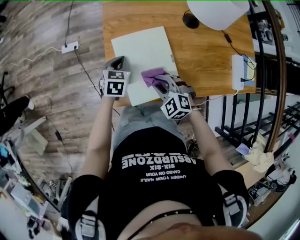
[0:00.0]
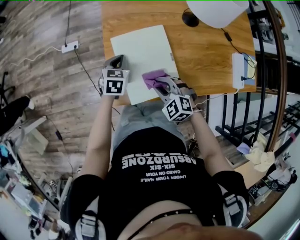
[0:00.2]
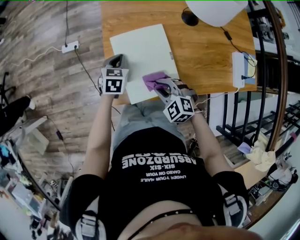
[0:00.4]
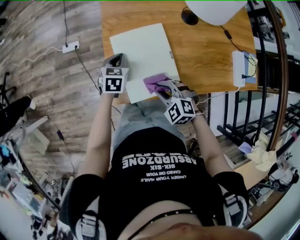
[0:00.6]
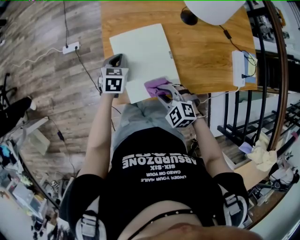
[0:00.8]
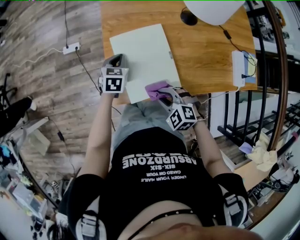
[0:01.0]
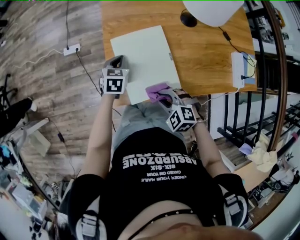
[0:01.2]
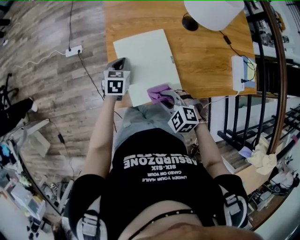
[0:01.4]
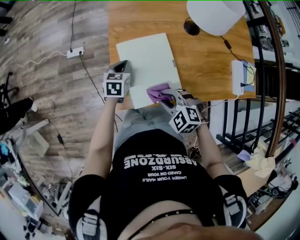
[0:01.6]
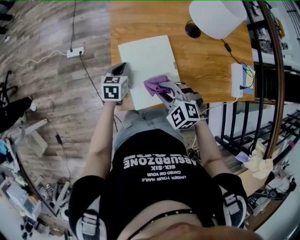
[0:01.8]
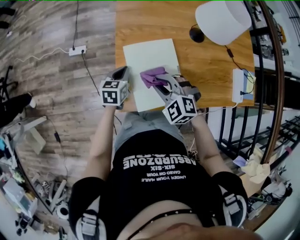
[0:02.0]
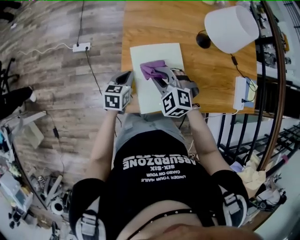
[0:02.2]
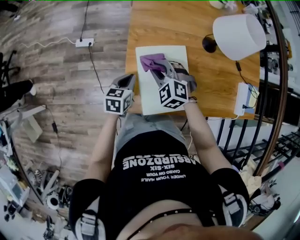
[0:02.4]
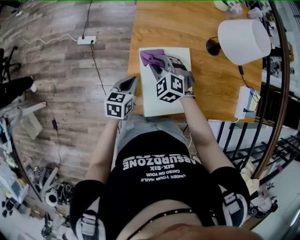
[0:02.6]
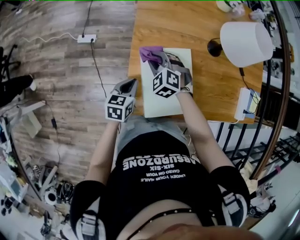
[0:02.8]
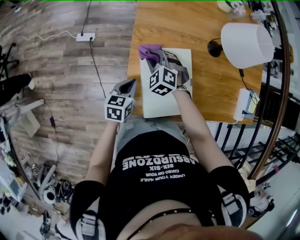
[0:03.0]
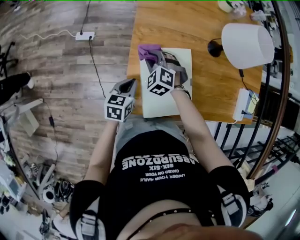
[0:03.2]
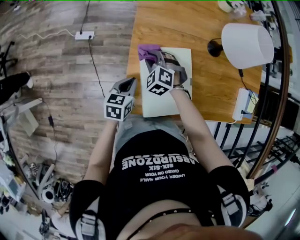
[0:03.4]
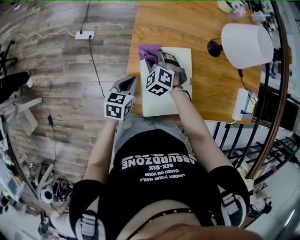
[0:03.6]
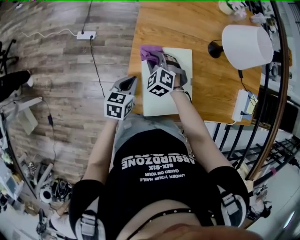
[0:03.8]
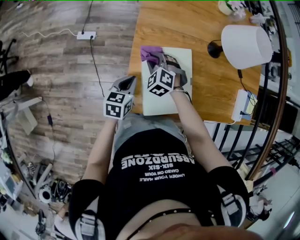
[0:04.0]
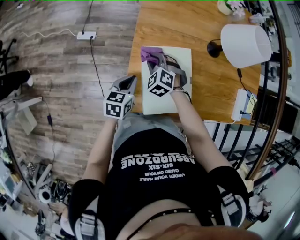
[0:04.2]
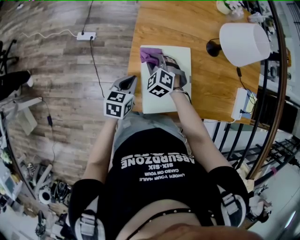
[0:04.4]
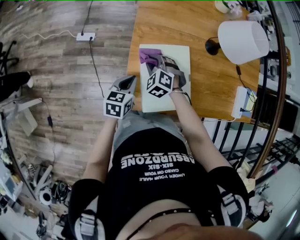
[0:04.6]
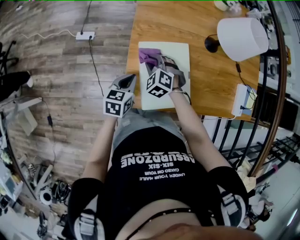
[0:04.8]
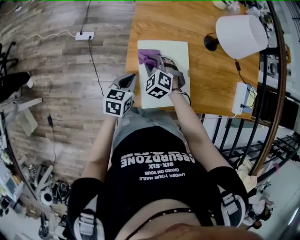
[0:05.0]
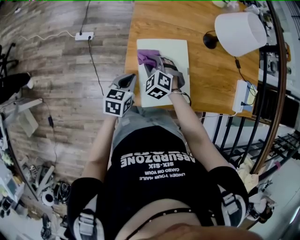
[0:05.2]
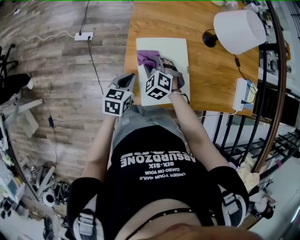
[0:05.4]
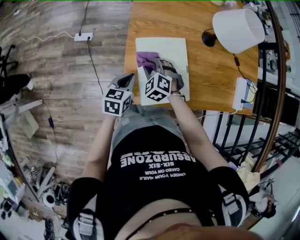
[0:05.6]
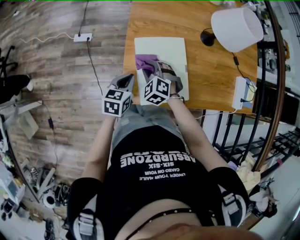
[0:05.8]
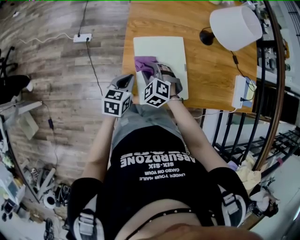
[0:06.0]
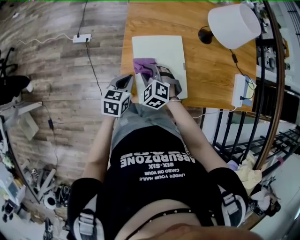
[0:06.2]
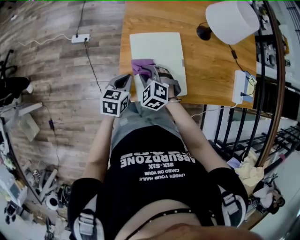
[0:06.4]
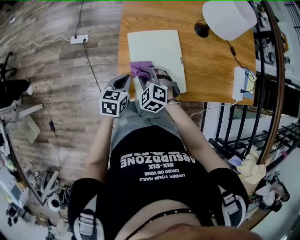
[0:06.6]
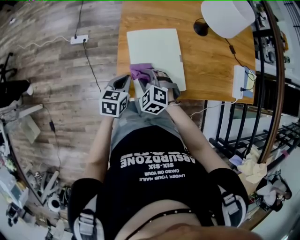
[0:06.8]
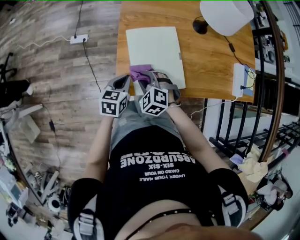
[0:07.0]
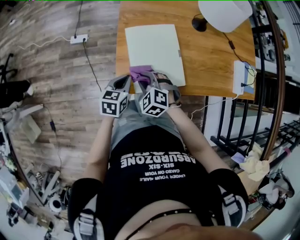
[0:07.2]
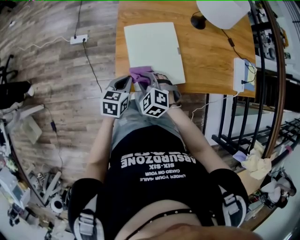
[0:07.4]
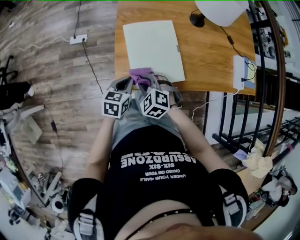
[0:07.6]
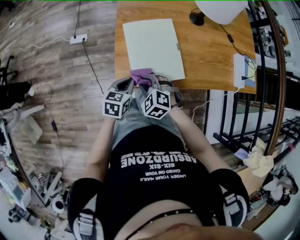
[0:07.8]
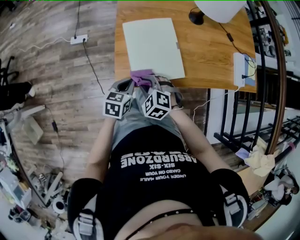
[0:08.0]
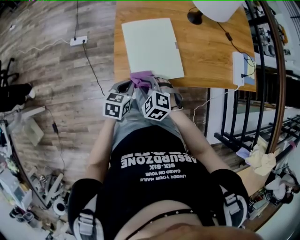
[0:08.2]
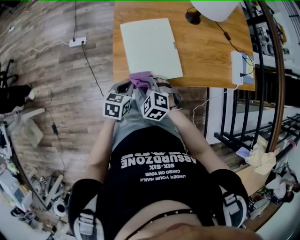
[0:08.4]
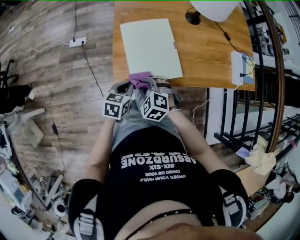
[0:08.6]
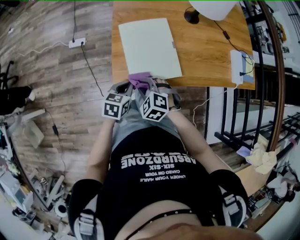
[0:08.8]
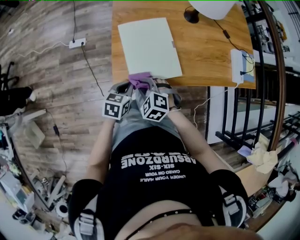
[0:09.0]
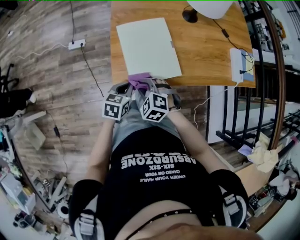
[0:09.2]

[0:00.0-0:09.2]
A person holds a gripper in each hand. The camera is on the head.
0:00.0 to 0:01.6: The right gripper shifts by some 5 cm.
0:01.6 to 0:03.0: The right gripper shifts some 25 cm forward and to the left; the left gripper goes some 5 cm backward.
0:03.0 to 0:04.6: The grippers move only a little.
0:04.6 to 0:06.2: The right gripper heads backward, covering about 10 cm.
0:06.2 to 0:07.6: The right gripper moves backward, approximately 10 cm; the left gripper shifts about 5 cm backward.
0:07.6 to 0:09.2: The grippers move only a little.

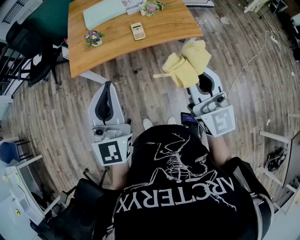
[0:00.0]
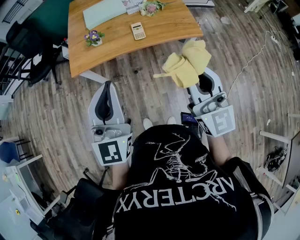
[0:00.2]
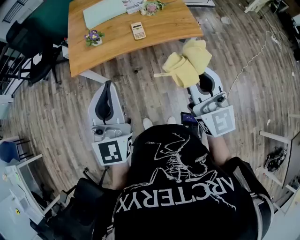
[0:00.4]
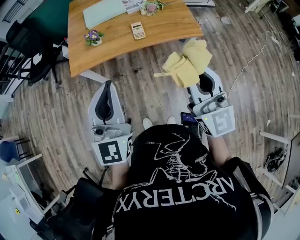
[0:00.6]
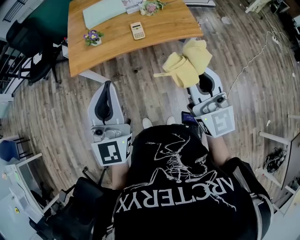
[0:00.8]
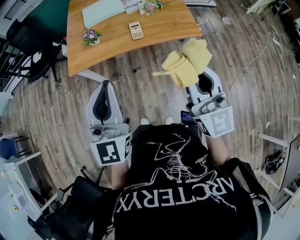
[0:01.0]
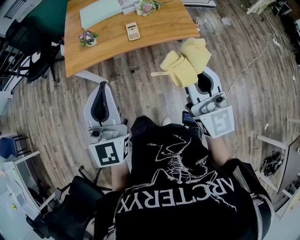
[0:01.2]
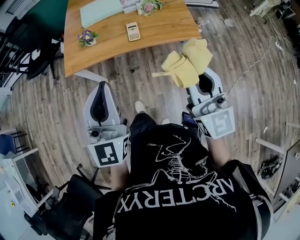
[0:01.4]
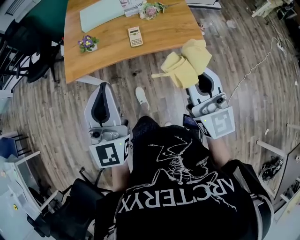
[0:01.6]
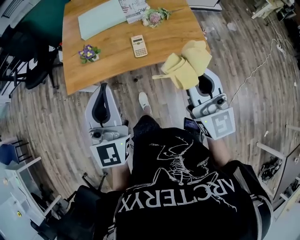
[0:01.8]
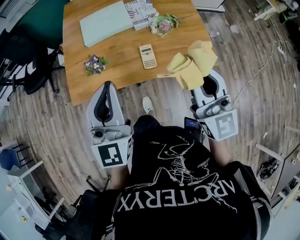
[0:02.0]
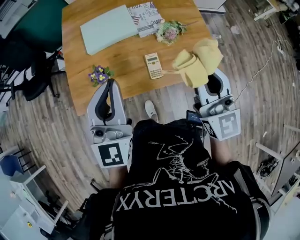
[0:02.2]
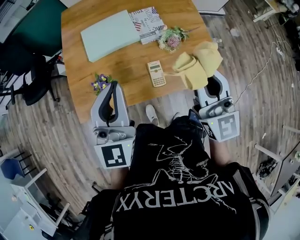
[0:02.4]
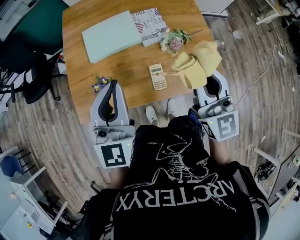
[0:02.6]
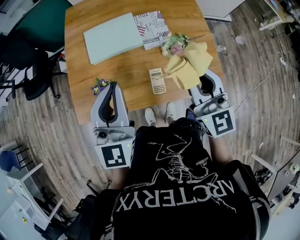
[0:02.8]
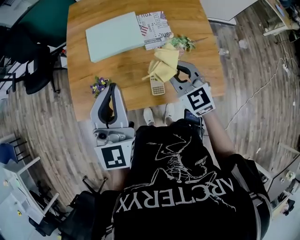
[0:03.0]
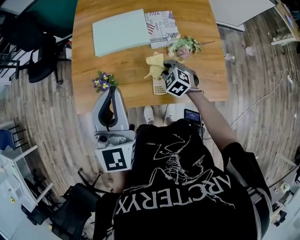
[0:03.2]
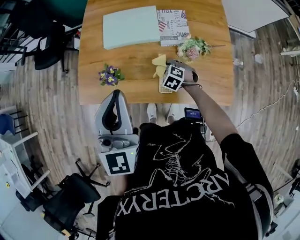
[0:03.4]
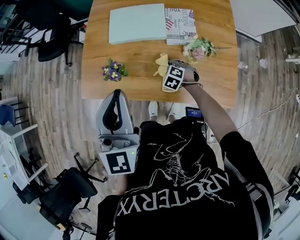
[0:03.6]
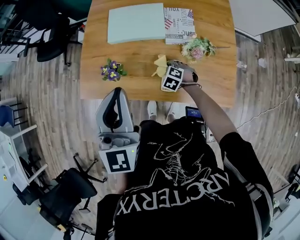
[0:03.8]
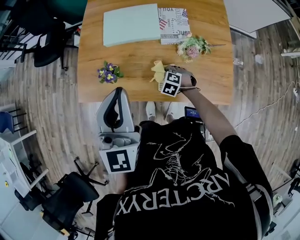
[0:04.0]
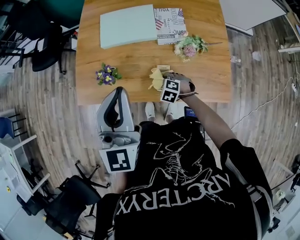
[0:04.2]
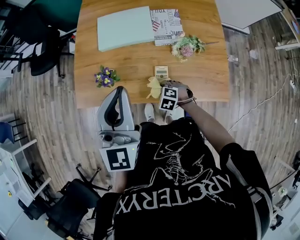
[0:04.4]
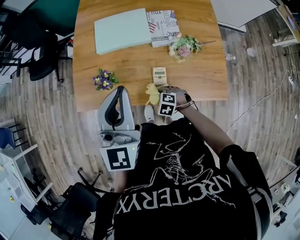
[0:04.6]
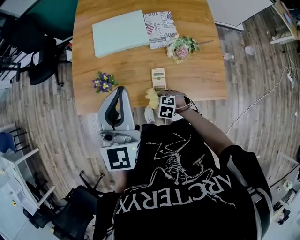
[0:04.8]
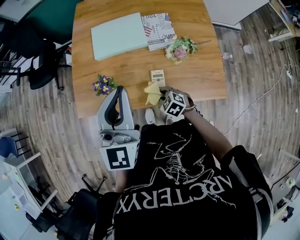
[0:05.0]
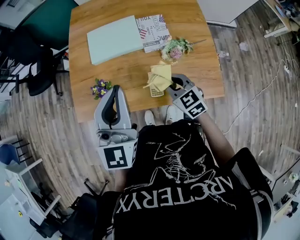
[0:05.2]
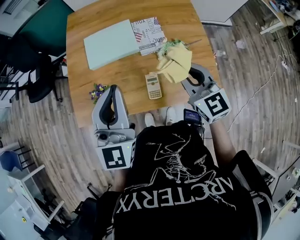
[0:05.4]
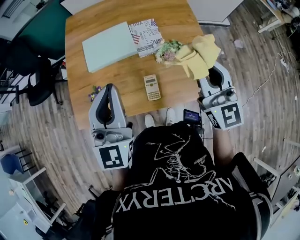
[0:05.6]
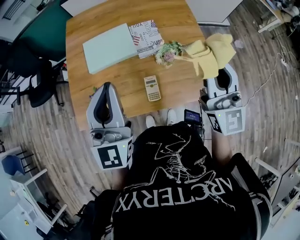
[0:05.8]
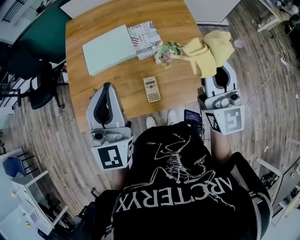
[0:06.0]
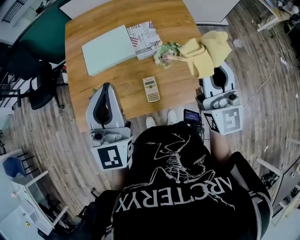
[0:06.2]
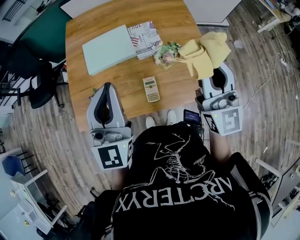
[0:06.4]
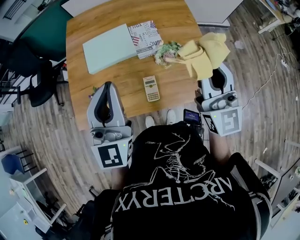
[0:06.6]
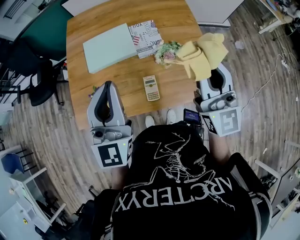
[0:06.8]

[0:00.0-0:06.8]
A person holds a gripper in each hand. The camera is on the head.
0:00.0 to 0:01.4: Both grippers move to the right, roughly 5 cm.
0:01.4 to 0:02.8: The two grippers travel together, forward, about 40 cm.
0:02.8 to 0:04.0: The right gripper is displaced downward by roughly 40 cm, and tilts its fingers about 70 degrees downward.
0:04.0 to 0:05.4: The right gripper is displaced upward by approximately 35 cm, and points its fingers roughly 60 degrees further upward.
0:05.4 to 0:06.8: The right gripper travels upward and to the right by roughly 15 cm, and turns by about 30 degrees.

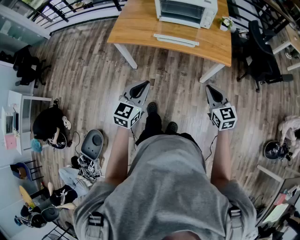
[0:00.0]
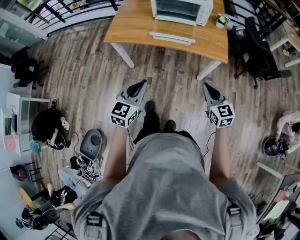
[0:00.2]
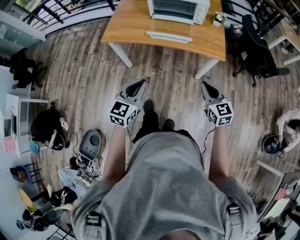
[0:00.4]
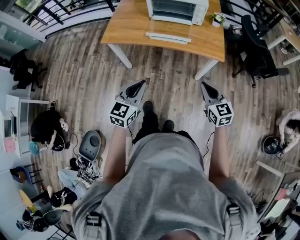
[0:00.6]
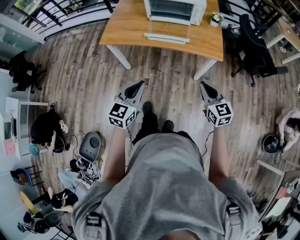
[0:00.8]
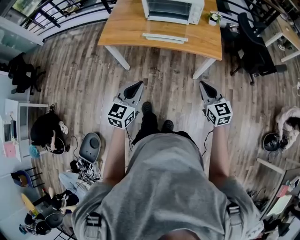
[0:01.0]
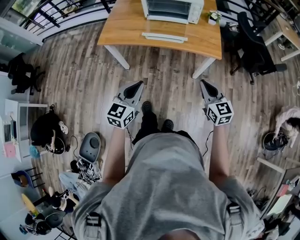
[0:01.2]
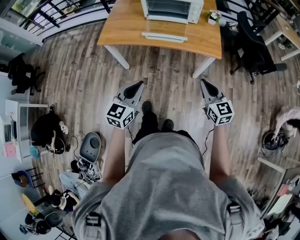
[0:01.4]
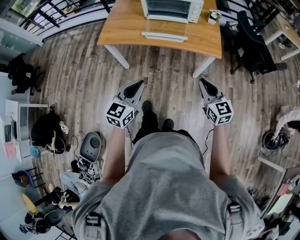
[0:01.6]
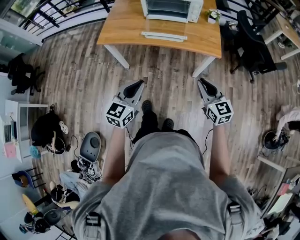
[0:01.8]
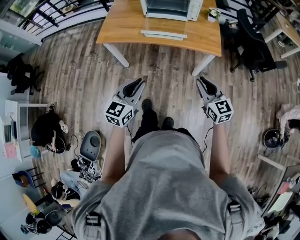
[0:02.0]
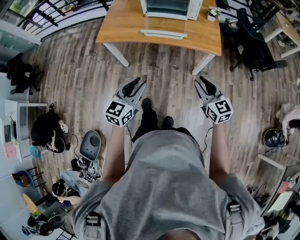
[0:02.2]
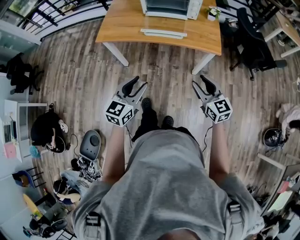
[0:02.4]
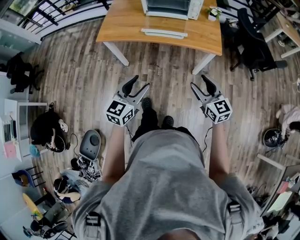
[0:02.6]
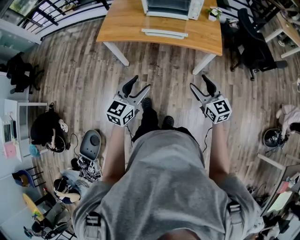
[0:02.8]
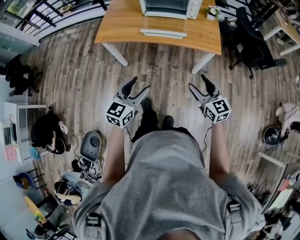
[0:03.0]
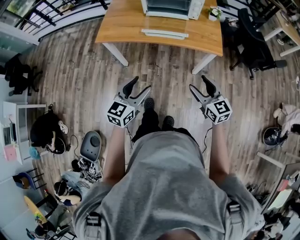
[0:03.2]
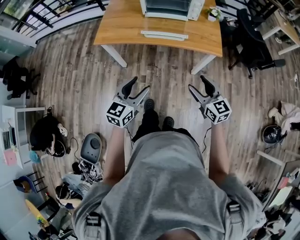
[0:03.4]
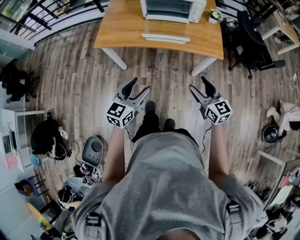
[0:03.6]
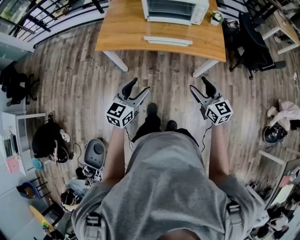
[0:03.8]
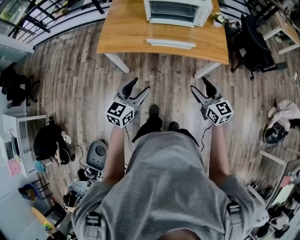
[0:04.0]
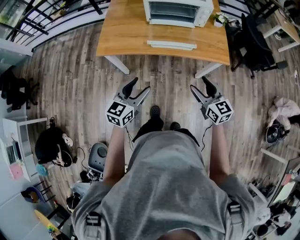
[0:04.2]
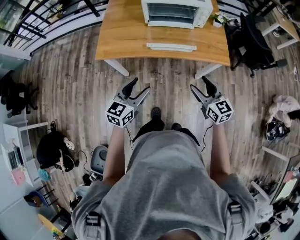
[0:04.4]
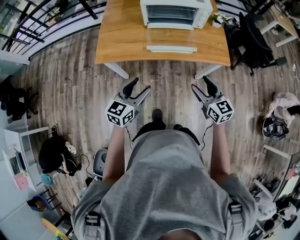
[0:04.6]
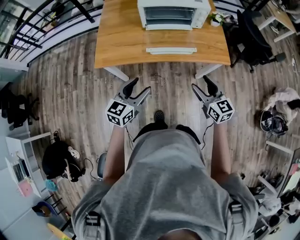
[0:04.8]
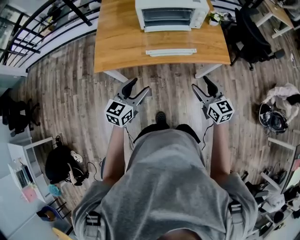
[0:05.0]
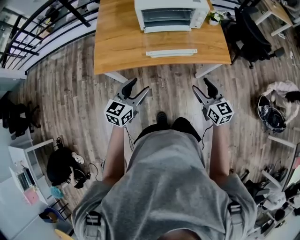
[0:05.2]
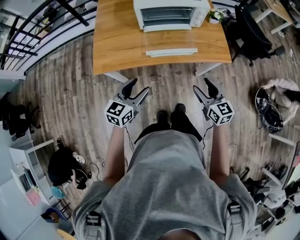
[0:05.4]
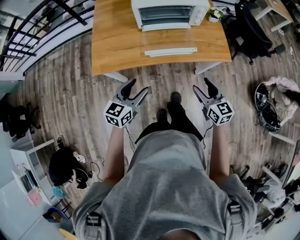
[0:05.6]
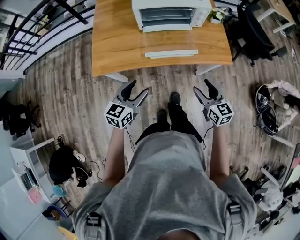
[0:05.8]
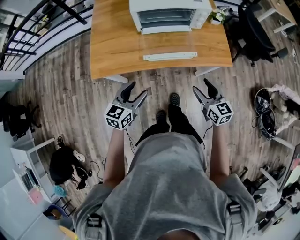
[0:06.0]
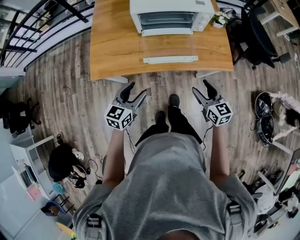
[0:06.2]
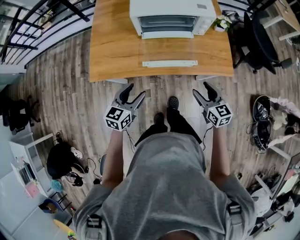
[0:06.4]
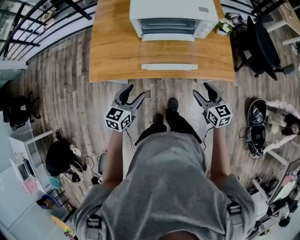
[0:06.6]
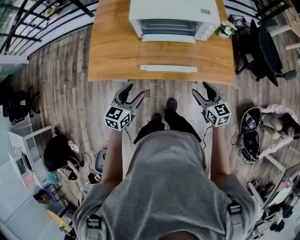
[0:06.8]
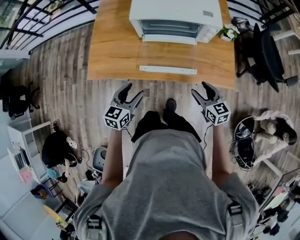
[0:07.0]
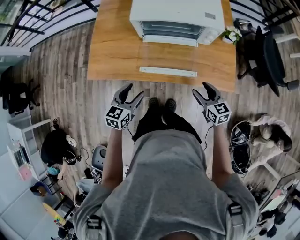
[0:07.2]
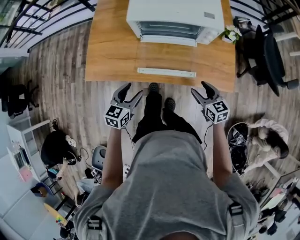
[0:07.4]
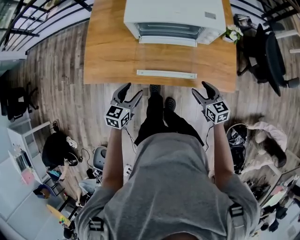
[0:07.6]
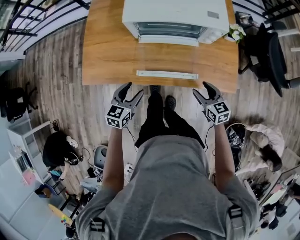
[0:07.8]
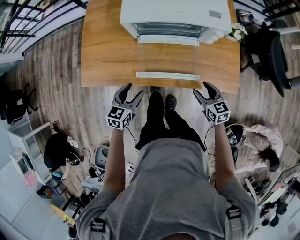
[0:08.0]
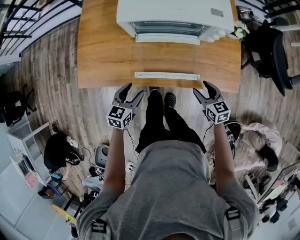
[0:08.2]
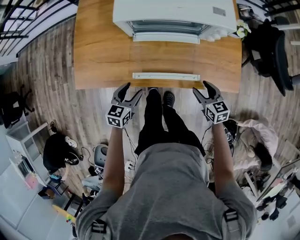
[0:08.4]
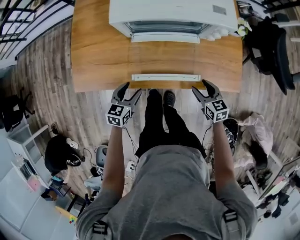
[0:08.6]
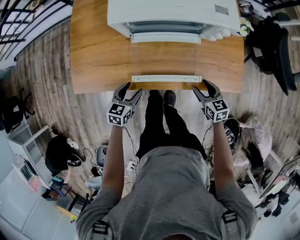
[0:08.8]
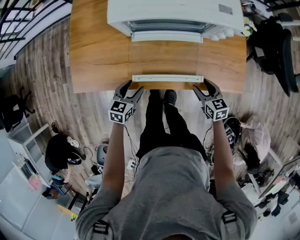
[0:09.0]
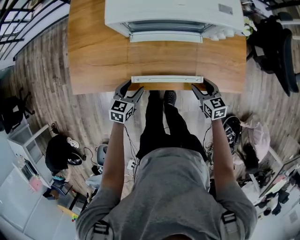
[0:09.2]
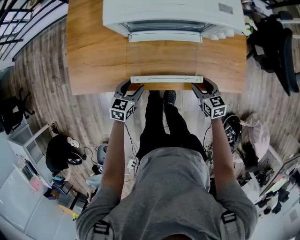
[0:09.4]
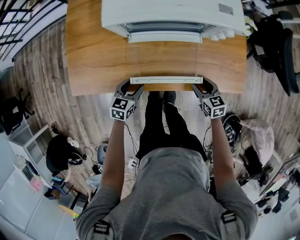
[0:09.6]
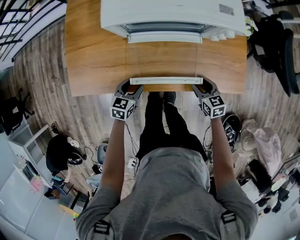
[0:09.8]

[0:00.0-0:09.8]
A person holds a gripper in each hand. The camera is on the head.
0:00.0 to 0:01.4: The grippers stay close to where they were, moving slightly.
0:01.4 to 0:02.8: The left gripper opens up. The right gripper opens.
0:02.8 to 0:04.2: The grippers both shift forward and to the left by roughly 15 cm.
0:04.2 to 0:05.6: The right gripper goes approximately 5 cm forward, while the left gripper is displaced forward and to the left by about 10 cm.
0:05.6 to 0:07.0: The grippers both shift forward and downward by roughly 15 cm.
0:07.0 to 0:08.4: The grippers both shift downward and forward by approximately 15 cm.
0:08.4 to 0:09.8: Both grippers move downward, some 5 cm.
